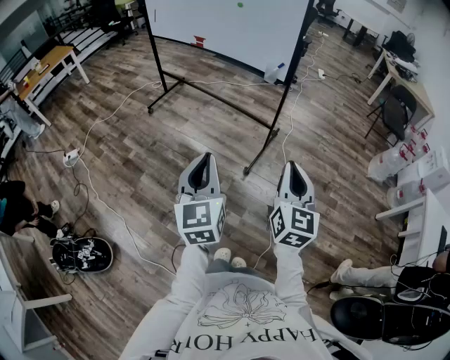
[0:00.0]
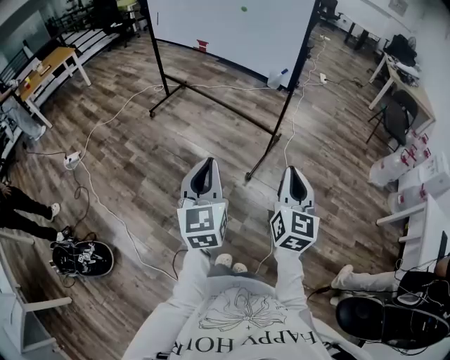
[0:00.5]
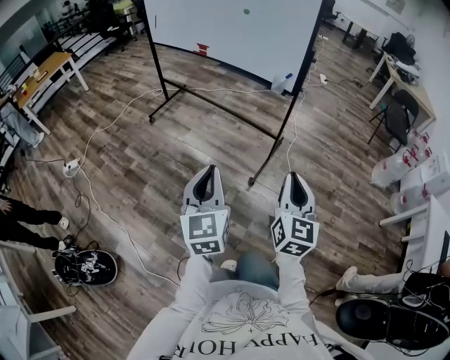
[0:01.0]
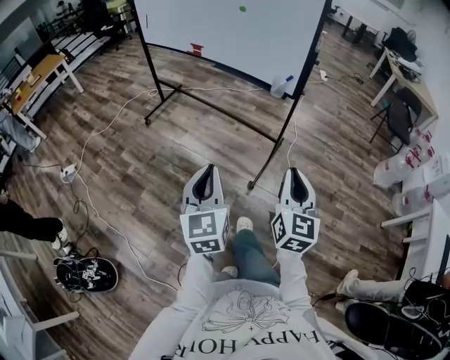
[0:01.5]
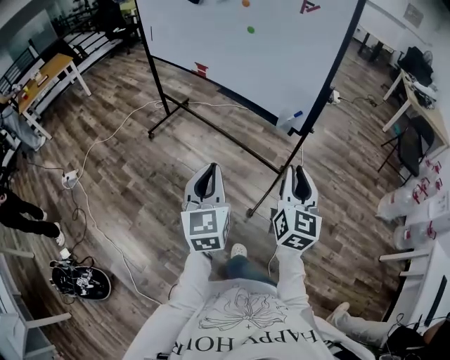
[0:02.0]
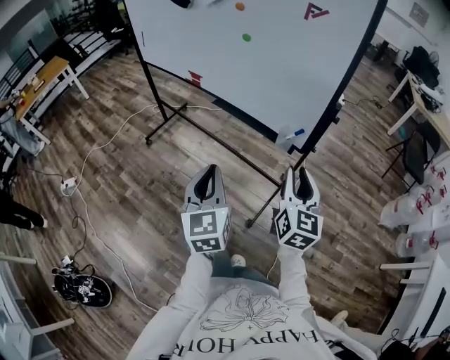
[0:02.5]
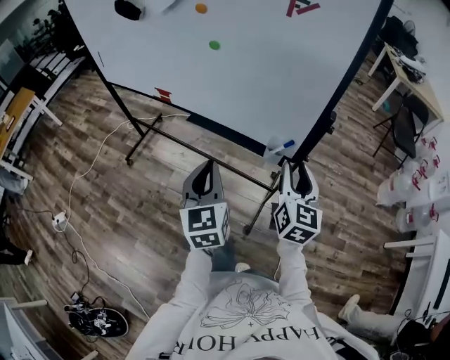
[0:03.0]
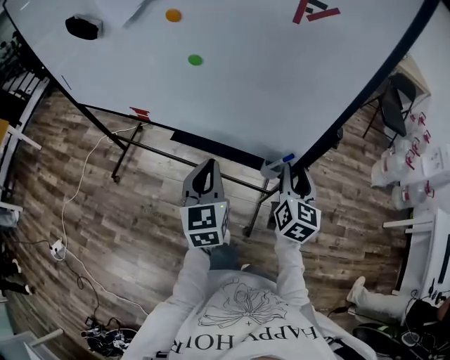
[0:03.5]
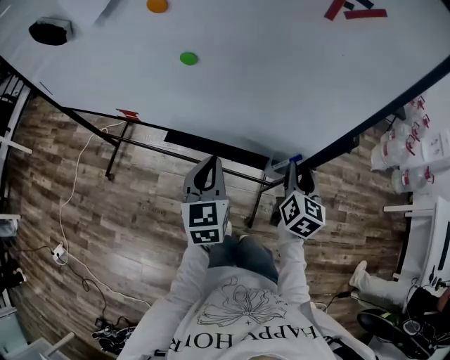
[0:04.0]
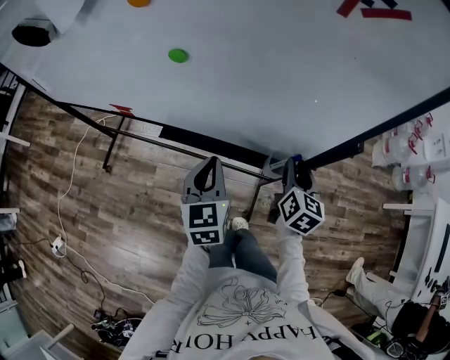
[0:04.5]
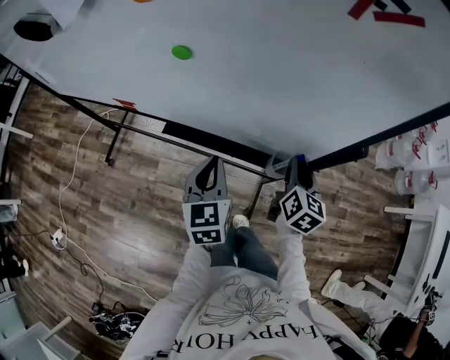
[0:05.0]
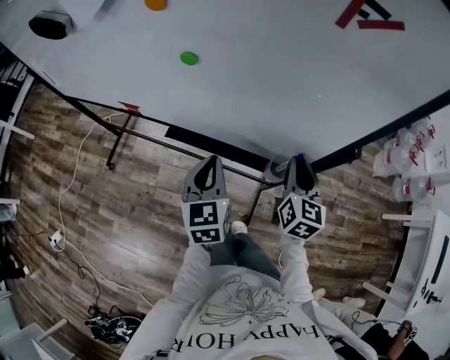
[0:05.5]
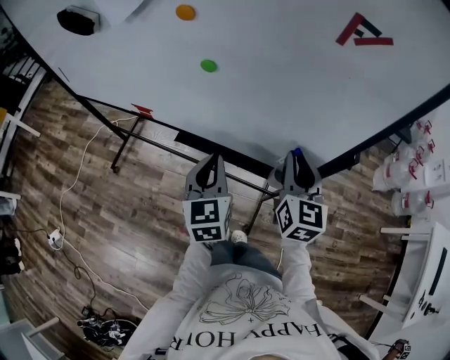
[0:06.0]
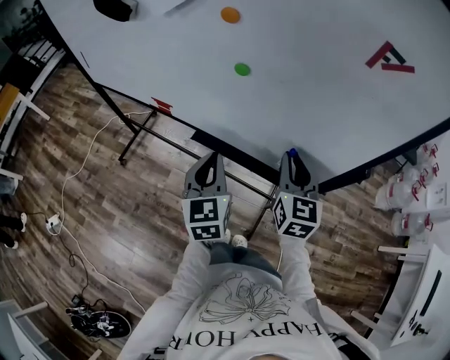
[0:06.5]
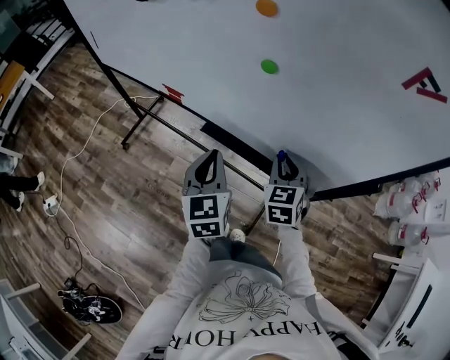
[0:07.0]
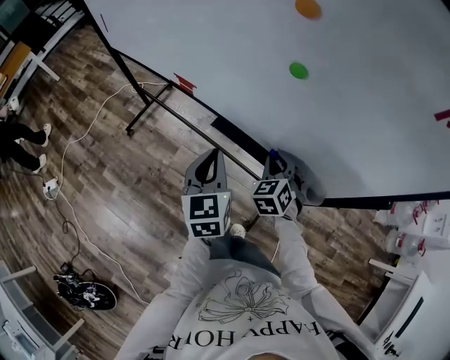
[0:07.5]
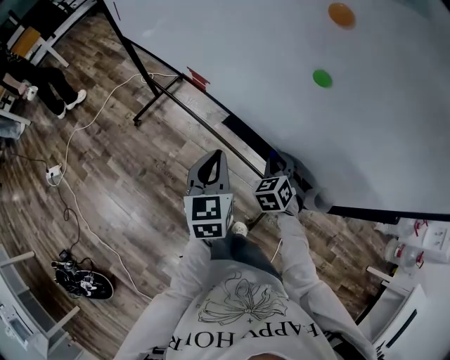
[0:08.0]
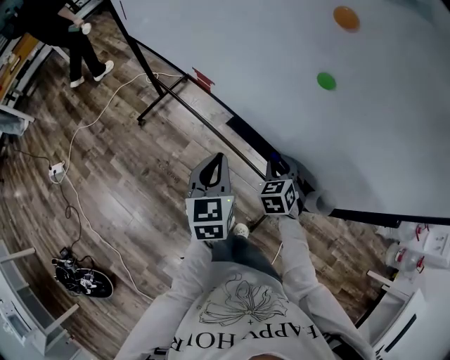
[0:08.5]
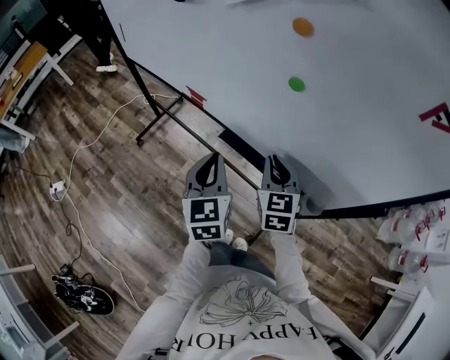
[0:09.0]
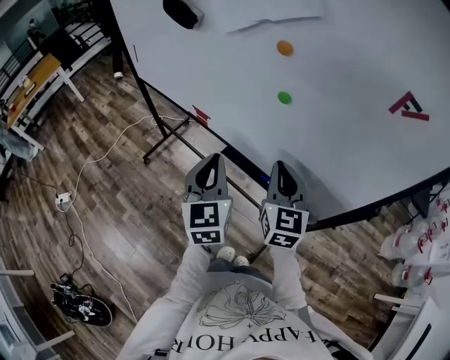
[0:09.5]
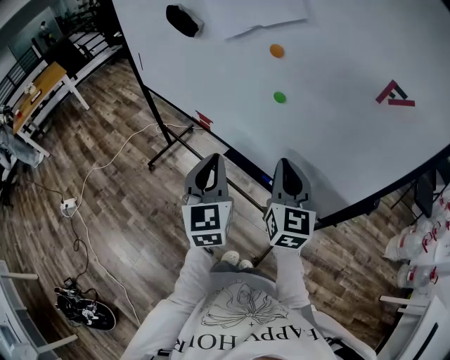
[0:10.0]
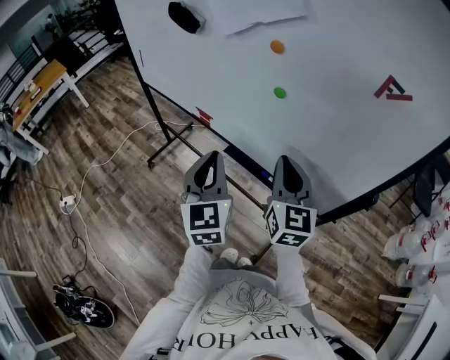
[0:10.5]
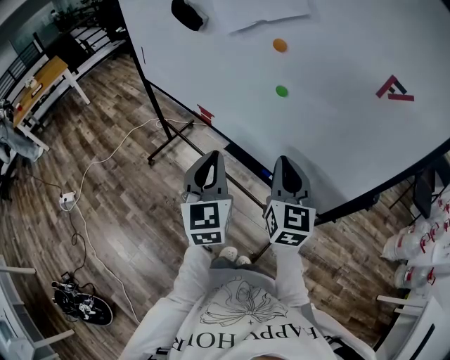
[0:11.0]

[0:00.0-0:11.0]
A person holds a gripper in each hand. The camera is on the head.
0:00.0 to 0:02.0: Both grippers travel together forward, some 35 cm.
0:02.0 to 0:03.5: Both grippers move forward, approximately 35 cm. The right gripper turns by roughly 20 degrees.
0:03.5 to 0:05.5: The right gripper moves forward, some 5 cm, and goes downward and returns, about 10 cm each way. Meanwhile the left gripper shifts about 10 cm forward and downward.
0:05.5 to 0:07.5: The left gripper is displaced to the left by roughly 15 cm, while the right gripper travels to the left and downward by roughly 20 cm, and twists approximately 50 degrees counterclockwise, seen from behind.
0:07.5 to 0:09.0: The right gripper goes about 10 cm upward, and rotates approximately 30 degrees.
0:09.0 to 0:11.0: Both grippers move upward and backward, approximately 15 cm. The right gripper rotates some 20 degrees.

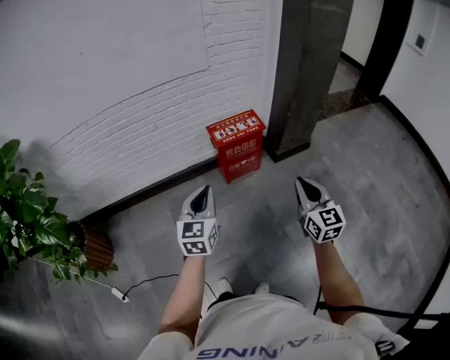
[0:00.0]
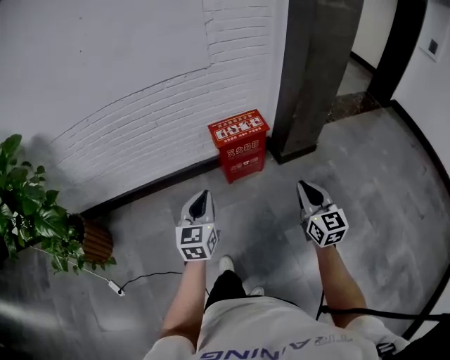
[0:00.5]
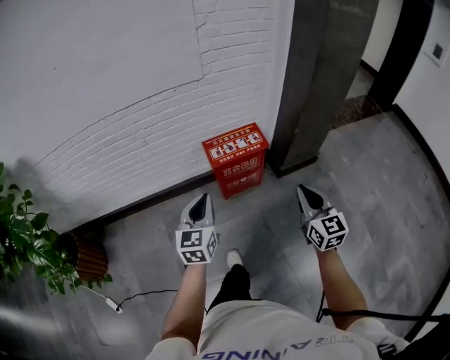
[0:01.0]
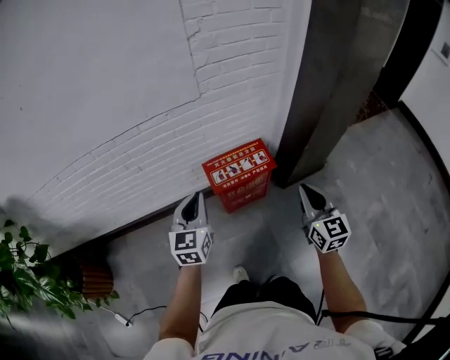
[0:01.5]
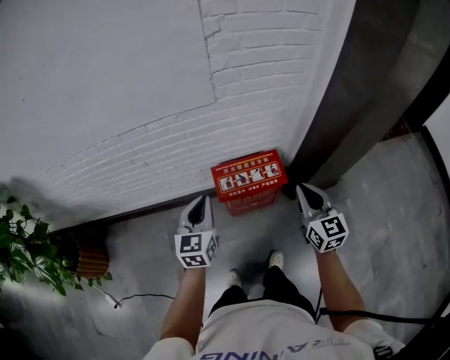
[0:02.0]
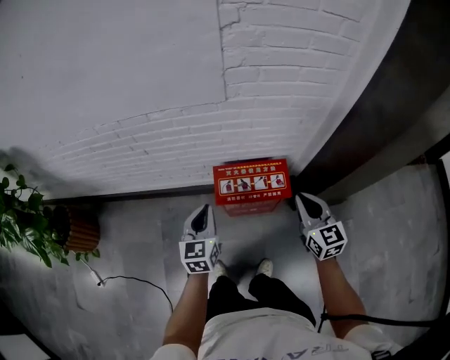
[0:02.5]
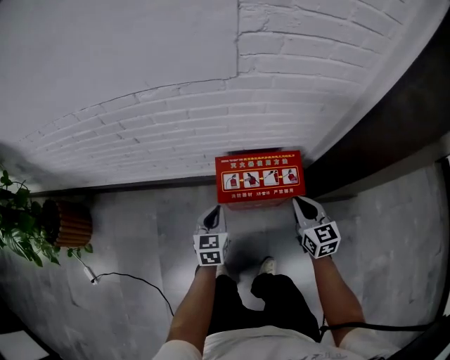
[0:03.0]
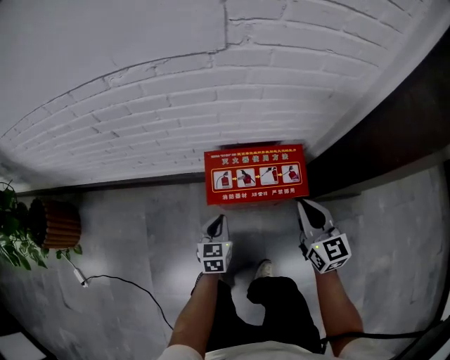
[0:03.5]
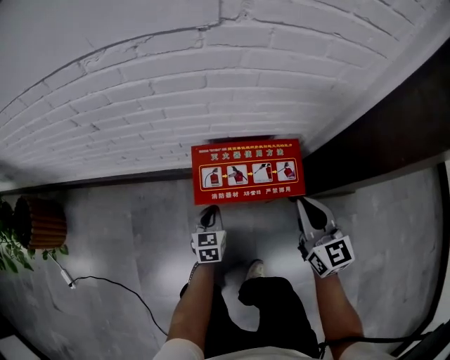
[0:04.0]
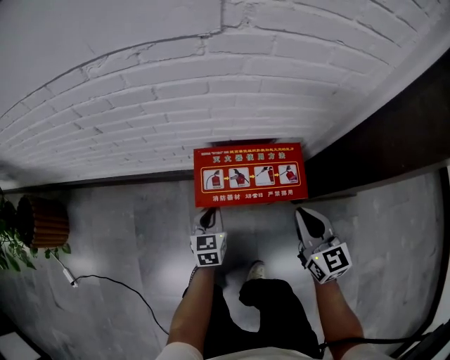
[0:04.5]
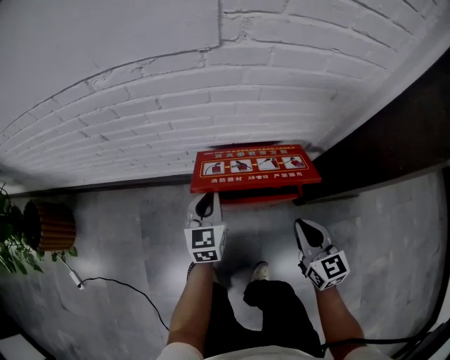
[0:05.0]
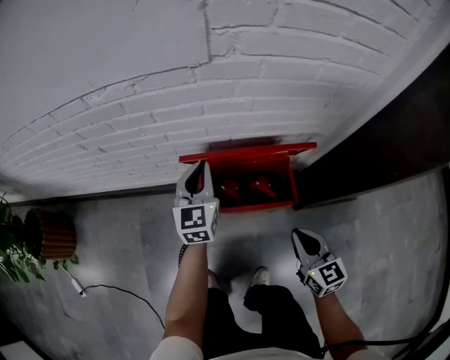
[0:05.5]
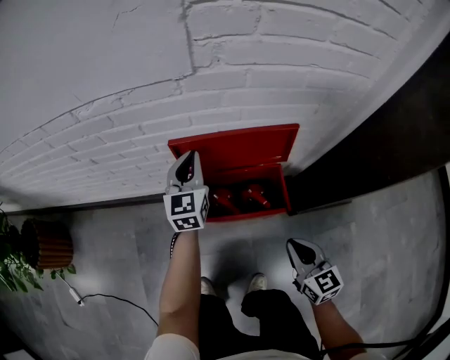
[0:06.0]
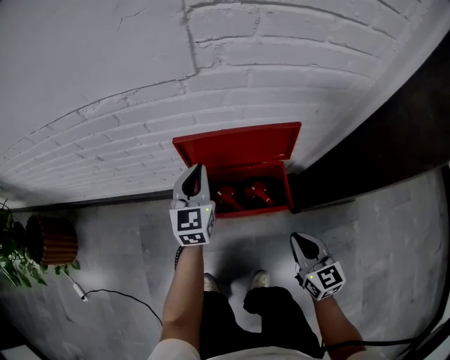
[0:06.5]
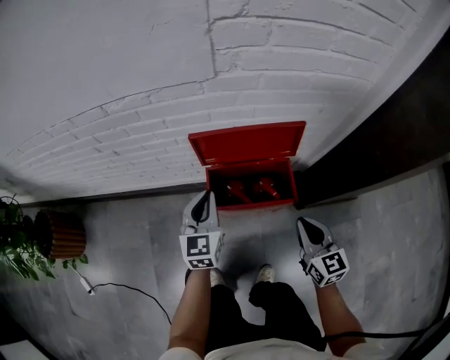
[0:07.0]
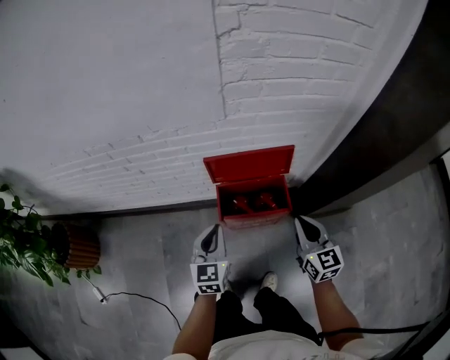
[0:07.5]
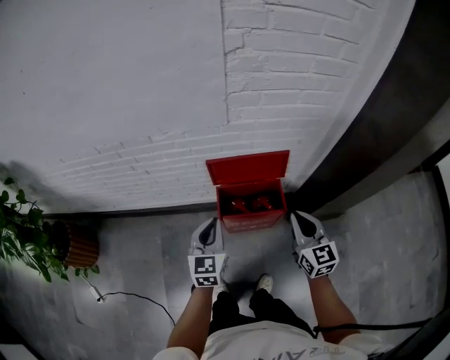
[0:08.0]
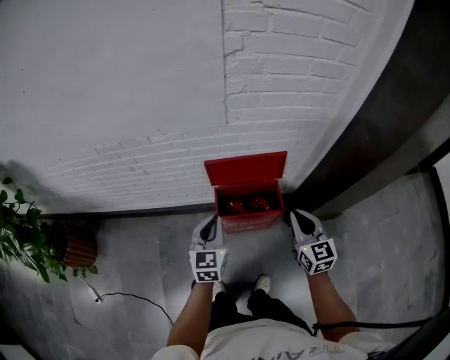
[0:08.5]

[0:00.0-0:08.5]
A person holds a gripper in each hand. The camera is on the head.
0:00.0 to 0:02.0: The two grippers travel together, forward, roughly 40 cm.
0:02.0 to 0:04.0: The left gripper moves downward, roughly 40 cm, and swivels approximately 20 degrees. Meanwhile the right gripper shifts roughly 25 cm downward and forward.
0:04.0 to 0:06.5: The left gripper moves upward and forward, roughly 30 cm, and swivels some 20 degrees.
0:06.5 to 0:08.5: The right gripper goes approximately 20 cm upward. Meanwhile the left gripper moves backward and upward, roughly 25 cm.

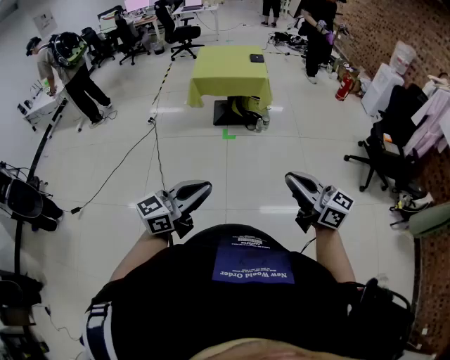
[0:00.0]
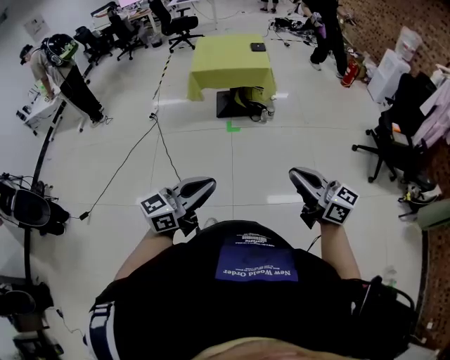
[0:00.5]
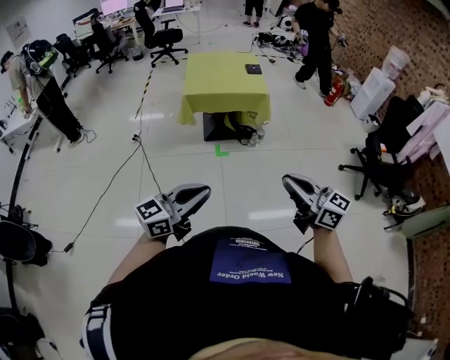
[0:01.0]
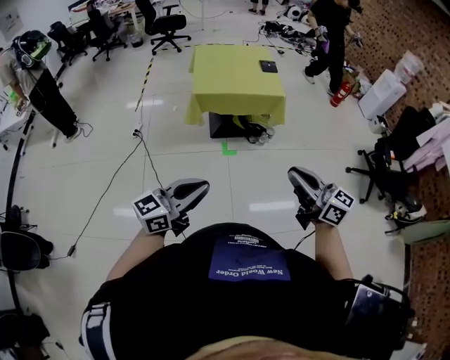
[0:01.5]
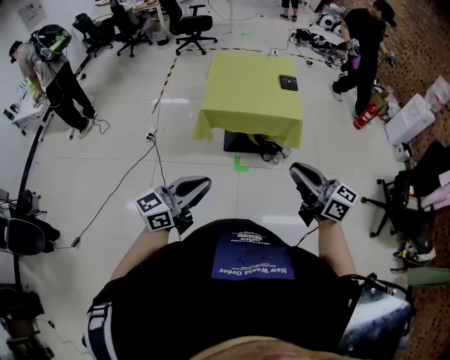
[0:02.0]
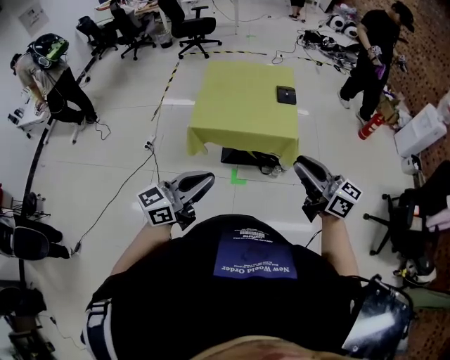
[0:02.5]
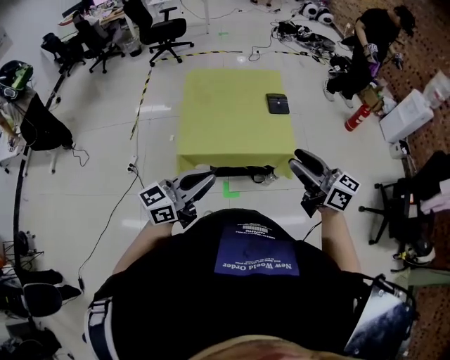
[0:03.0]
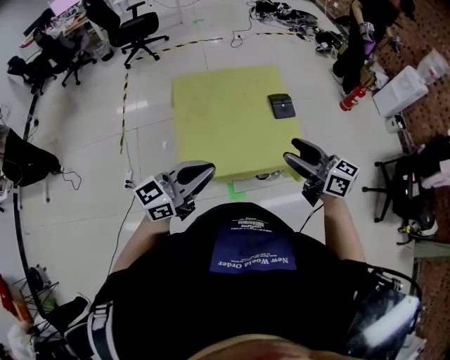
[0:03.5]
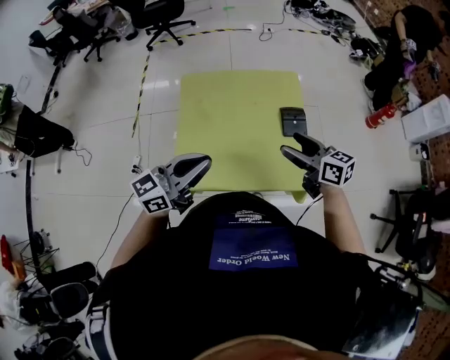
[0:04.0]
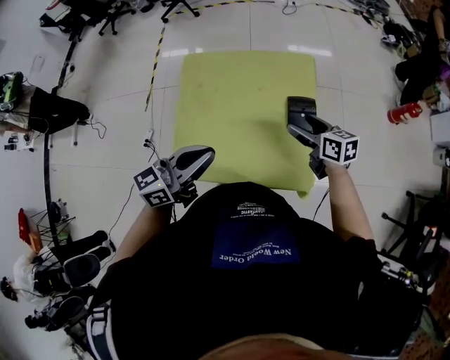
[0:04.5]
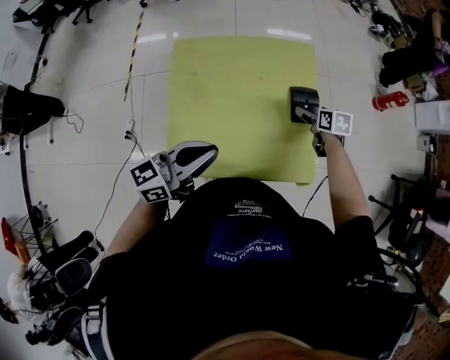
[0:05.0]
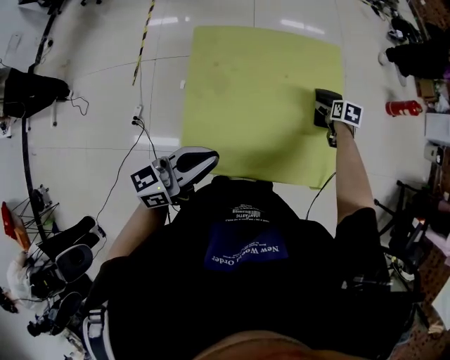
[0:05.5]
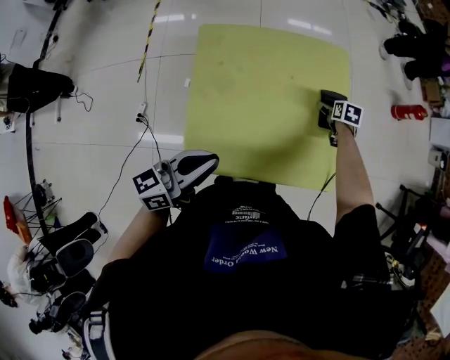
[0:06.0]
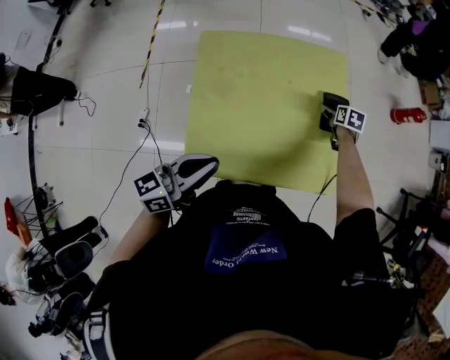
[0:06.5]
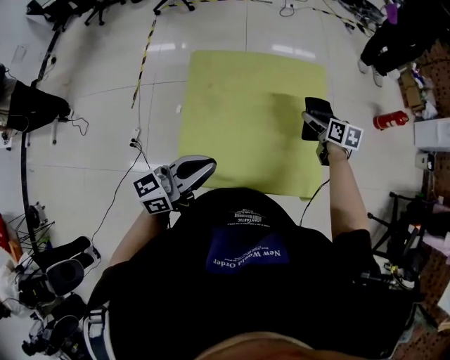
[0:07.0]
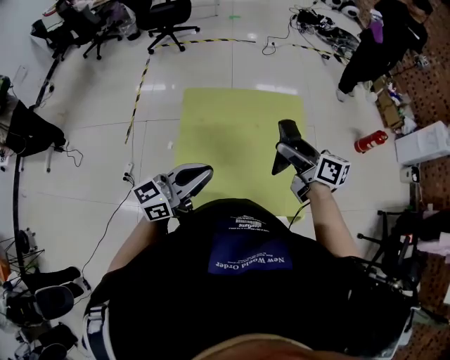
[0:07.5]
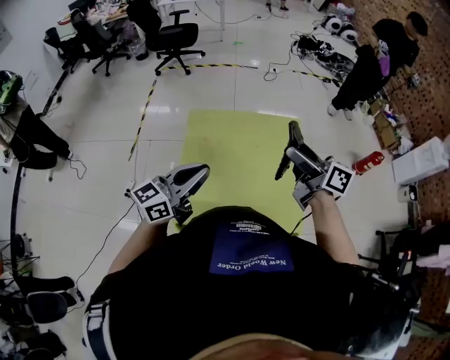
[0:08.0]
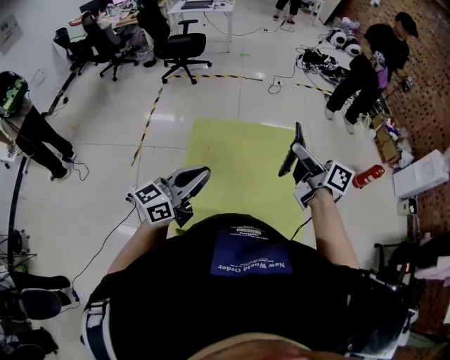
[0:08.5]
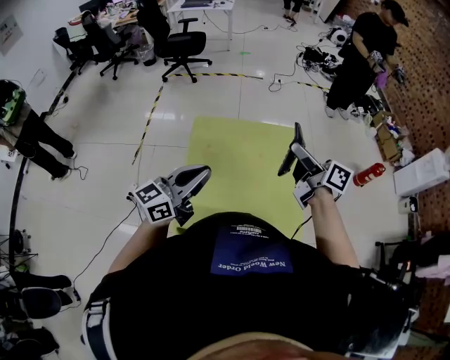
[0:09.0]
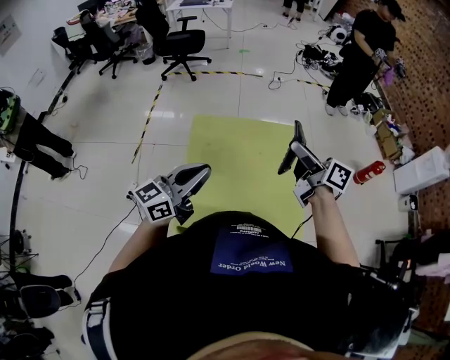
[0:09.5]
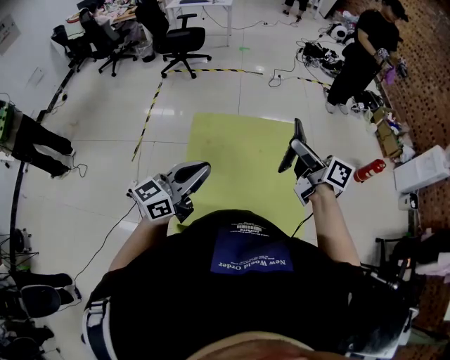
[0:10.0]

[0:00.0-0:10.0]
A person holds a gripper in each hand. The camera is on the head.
0:00.0 to 0:02.0: The pair of grippers is taken forward, roughly 60 cm.
0:02.0 to 0:04.0: Both grippers are carried forward, about 60 cm. The right gripper changes its angle by about 20 degrees, and opens its fingers.
0:04.0 to 0:06.0: The left gripper shifts approximately 10 cm downward and to the left. The right gripper heads downward and forward, covering roughly 40 cm, tilts its fingers approximately 50 degrees downward, and opens.
0:06.0 to 0:08.0: The left gripper heads upward, covering roughly 10 cm. The right gripper heads upward, covering approximately 40 cm, and points its fingers about 70 degrees further upward.
0:08.0 to 0:10.0: The grippers move only a little.
